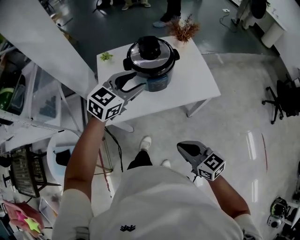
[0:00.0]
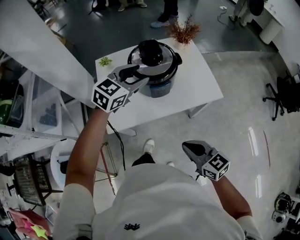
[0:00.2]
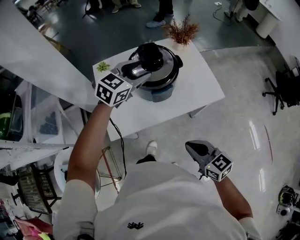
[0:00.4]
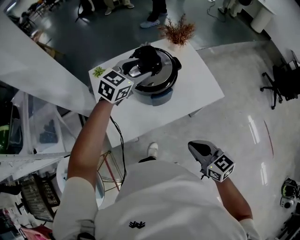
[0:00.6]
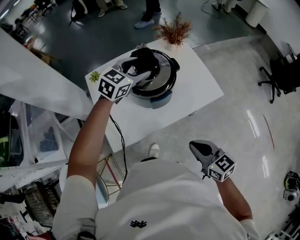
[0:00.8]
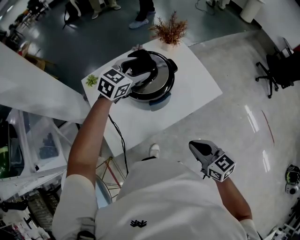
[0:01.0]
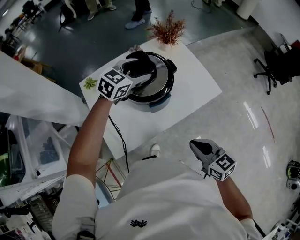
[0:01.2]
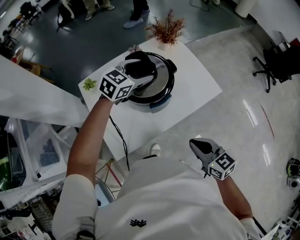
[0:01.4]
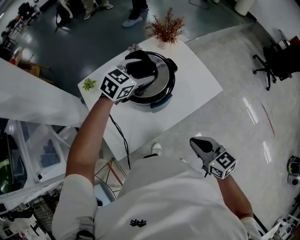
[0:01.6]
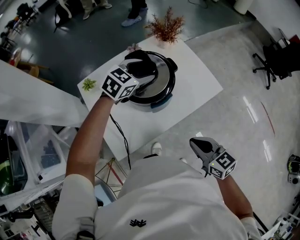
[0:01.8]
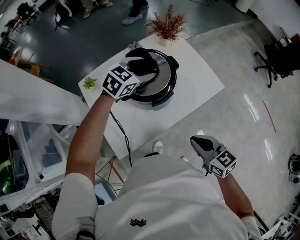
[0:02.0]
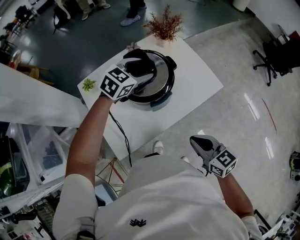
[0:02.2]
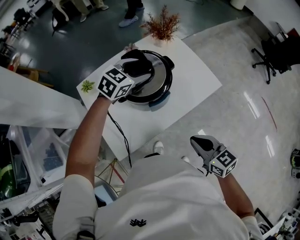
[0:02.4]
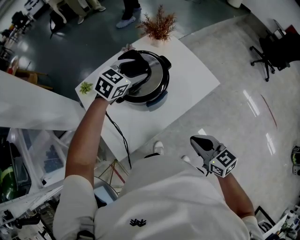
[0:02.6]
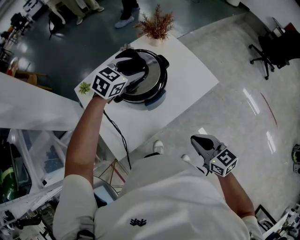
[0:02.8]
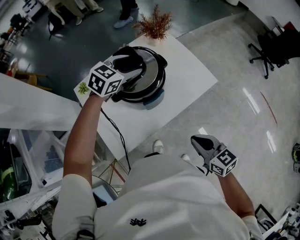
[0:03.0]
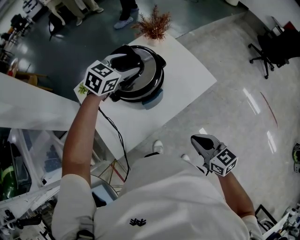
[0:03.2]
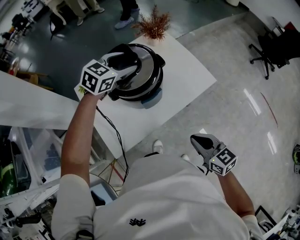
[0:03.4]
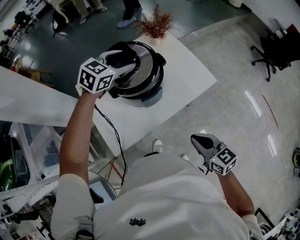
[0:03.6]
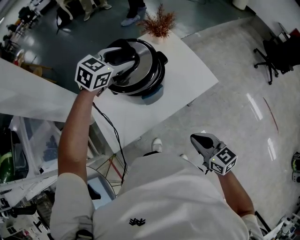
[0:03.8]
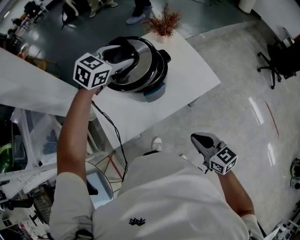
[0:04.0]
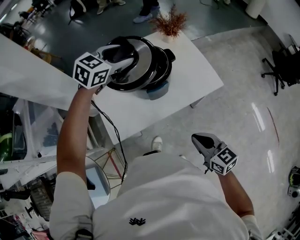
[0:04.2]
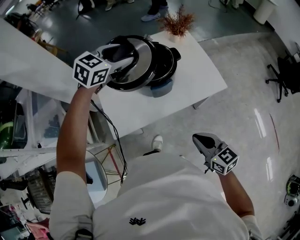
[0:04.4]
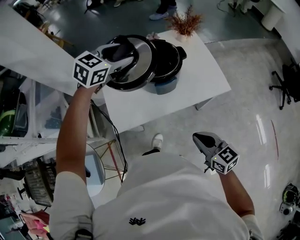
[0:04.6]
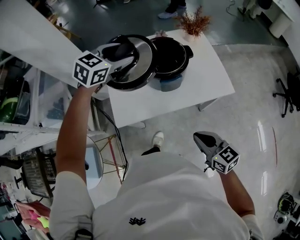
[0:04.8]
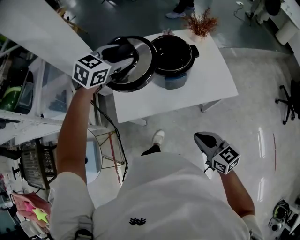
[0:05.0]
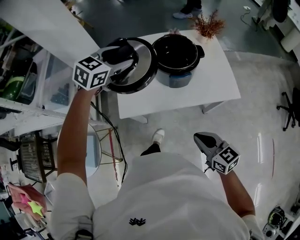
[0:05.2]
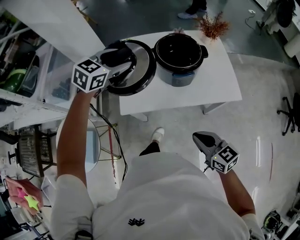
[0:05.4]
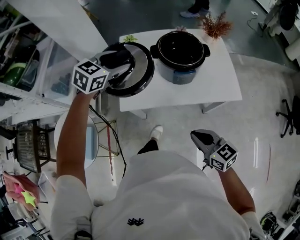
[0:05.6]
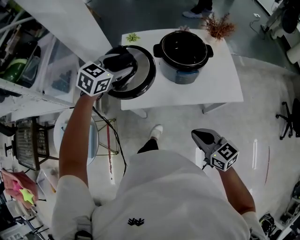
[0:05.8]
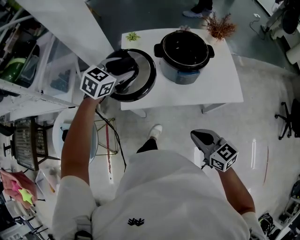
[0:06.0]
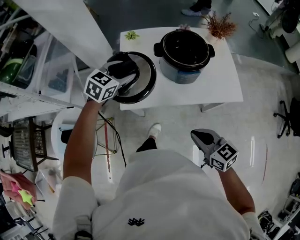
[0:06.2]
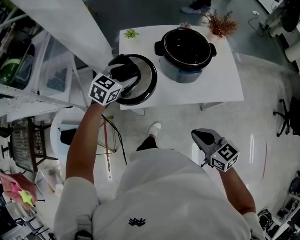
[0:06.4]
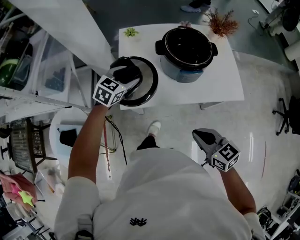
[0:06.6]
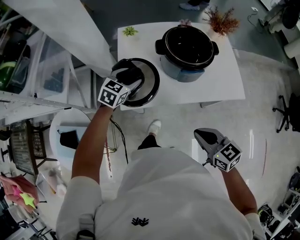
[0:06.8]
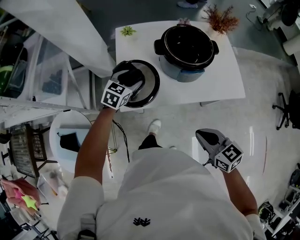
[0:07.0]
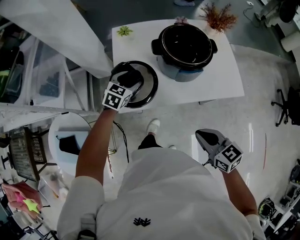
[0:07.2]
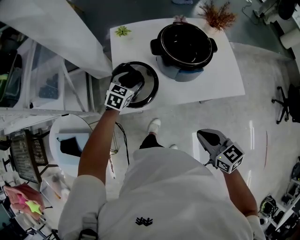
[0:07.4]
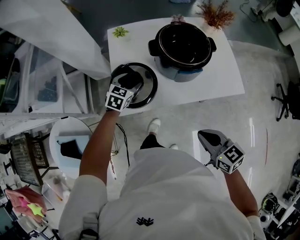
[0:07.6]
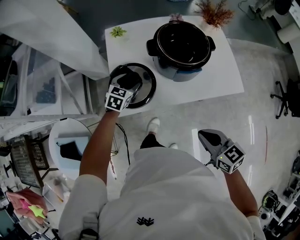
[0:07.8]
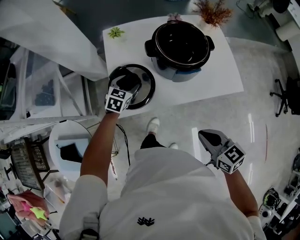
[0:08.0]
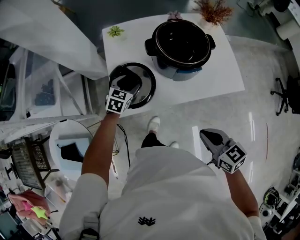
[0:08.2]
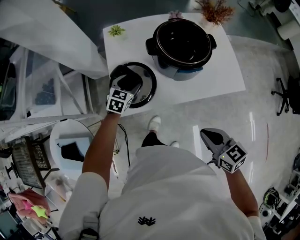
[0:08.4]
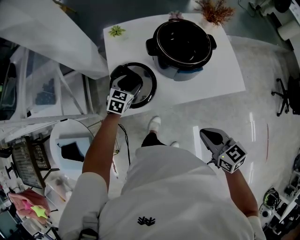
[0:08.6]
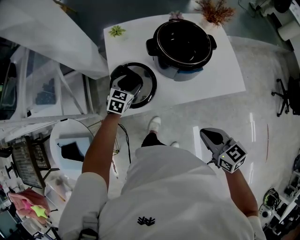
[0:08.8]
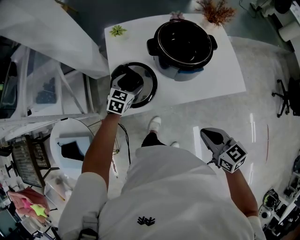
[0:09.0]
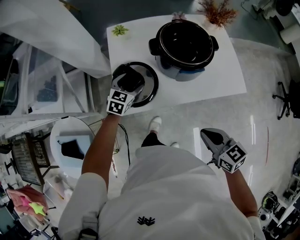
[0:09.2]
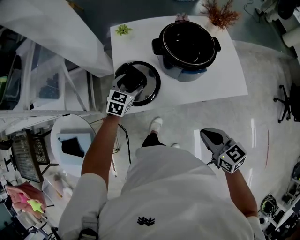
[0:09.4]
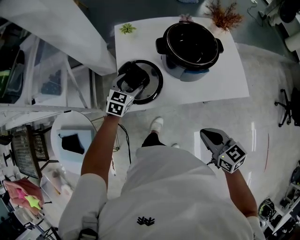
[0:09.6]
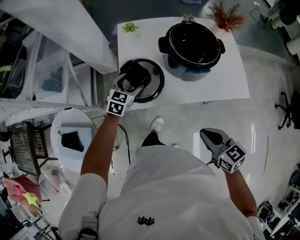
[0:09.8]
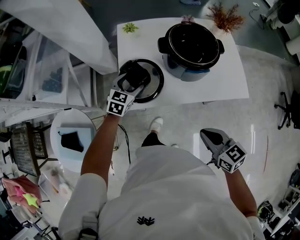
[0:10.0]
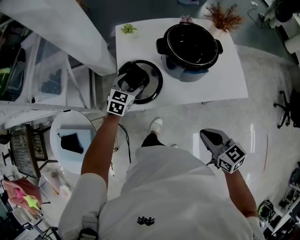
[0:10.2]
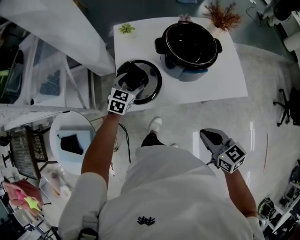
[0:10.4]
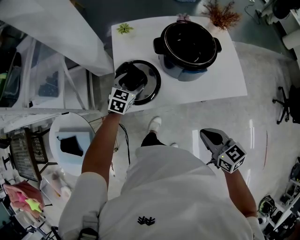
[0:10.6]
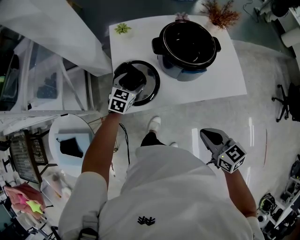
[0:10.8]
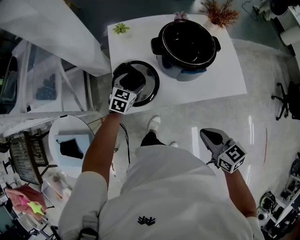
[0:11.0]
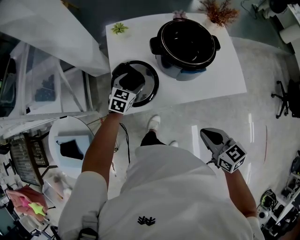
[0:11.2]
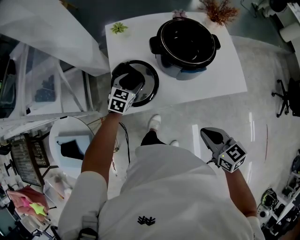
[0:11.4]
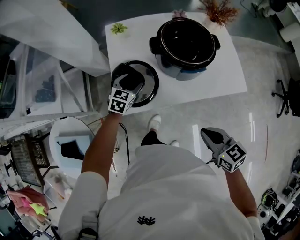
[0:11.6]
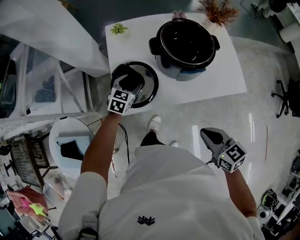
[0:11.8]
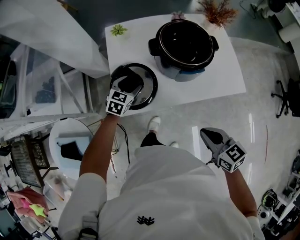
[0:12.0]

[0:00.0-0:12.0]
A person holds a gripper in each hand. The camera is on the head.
0:00.0 to 0:01.6: The right gripper moves forward, approximately 15 cm, and swivels approximately 20 degrees; the left gripper heads forward, covering some 20 cm, and changes its angle by roughly 20 degrees.
0:01.6 to 0:03.0: The grippers make only small movements.
0:03.0 to 0:04.4: The left gripper heads upward, to the left and backward, covering approximately 10 cm.
0:04.4 to 0:06.0: The right gripper moves to the left, about 5 cm, and swivels roughly 20 degrees. The left gripper goes approximately 20 cm to the left, backward and downward, and rotates roughly 20 degrees.
0:06.0 to 0:07.6: The left gripper goes approximately 20 cm downward.
0:07.6 to 0:12.0: There are only small adjustments of the grippers.

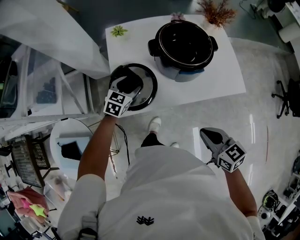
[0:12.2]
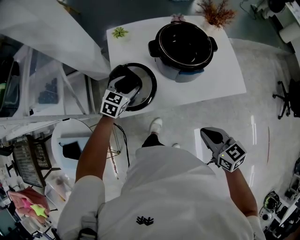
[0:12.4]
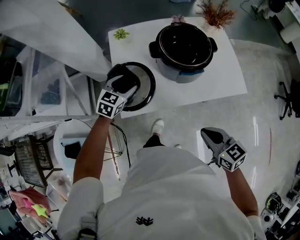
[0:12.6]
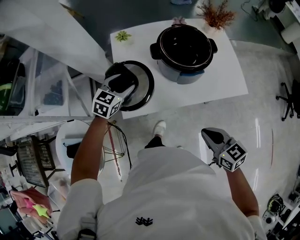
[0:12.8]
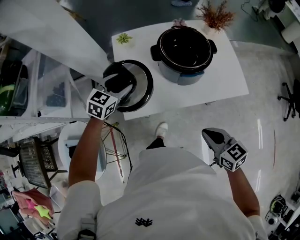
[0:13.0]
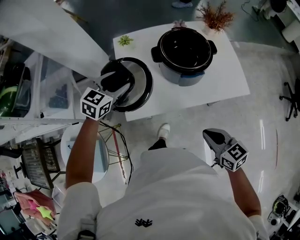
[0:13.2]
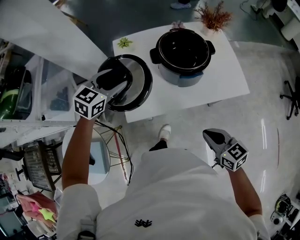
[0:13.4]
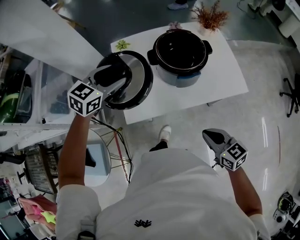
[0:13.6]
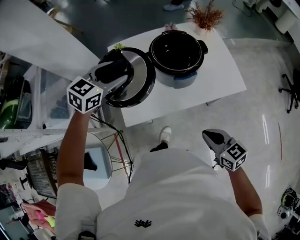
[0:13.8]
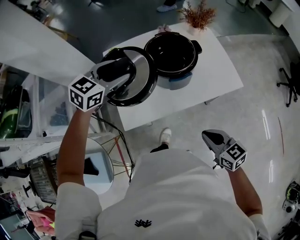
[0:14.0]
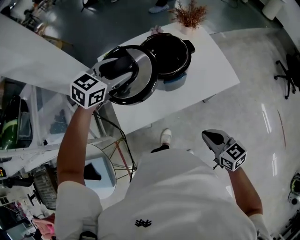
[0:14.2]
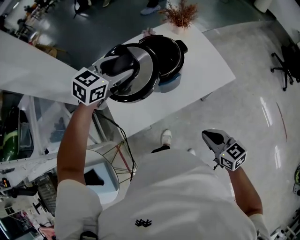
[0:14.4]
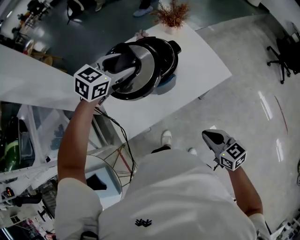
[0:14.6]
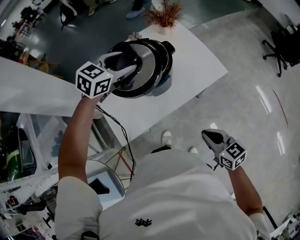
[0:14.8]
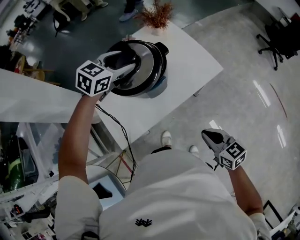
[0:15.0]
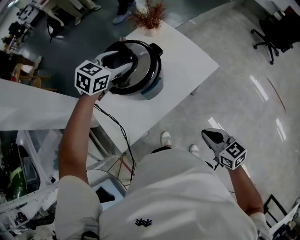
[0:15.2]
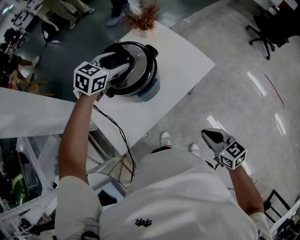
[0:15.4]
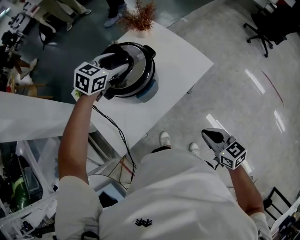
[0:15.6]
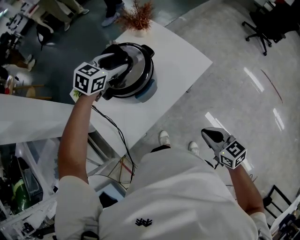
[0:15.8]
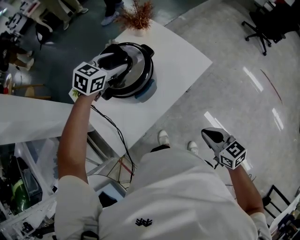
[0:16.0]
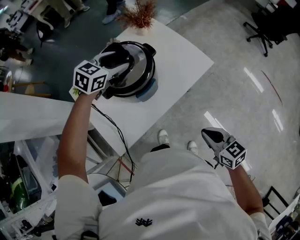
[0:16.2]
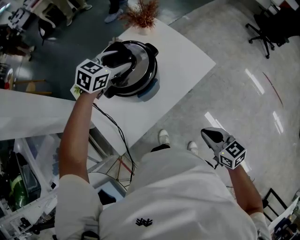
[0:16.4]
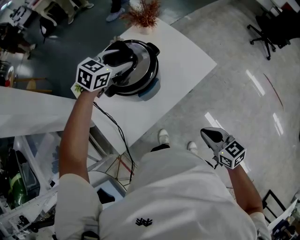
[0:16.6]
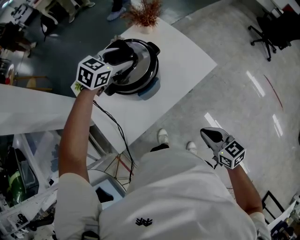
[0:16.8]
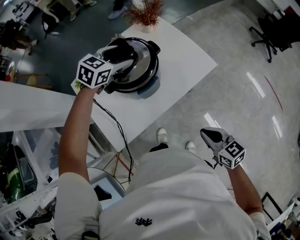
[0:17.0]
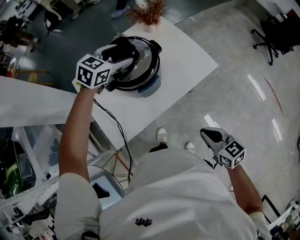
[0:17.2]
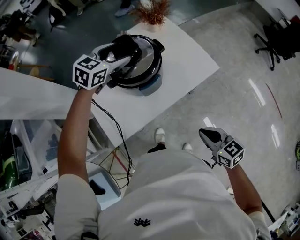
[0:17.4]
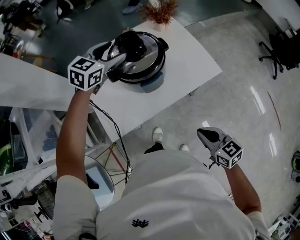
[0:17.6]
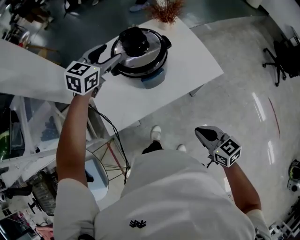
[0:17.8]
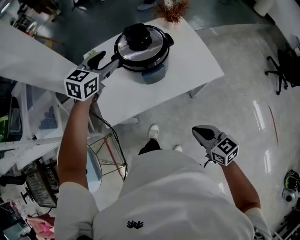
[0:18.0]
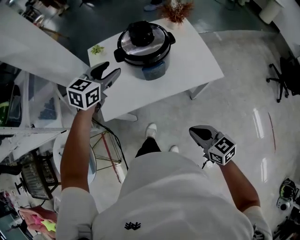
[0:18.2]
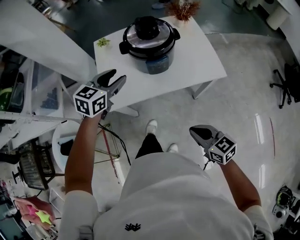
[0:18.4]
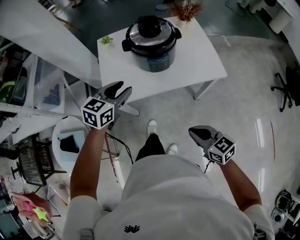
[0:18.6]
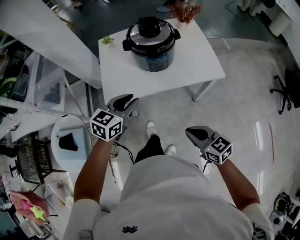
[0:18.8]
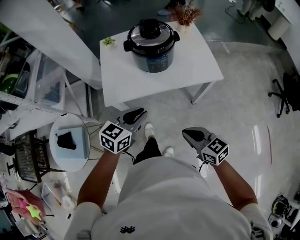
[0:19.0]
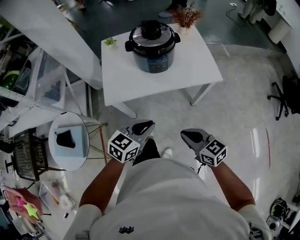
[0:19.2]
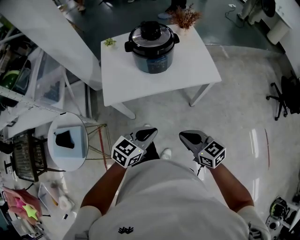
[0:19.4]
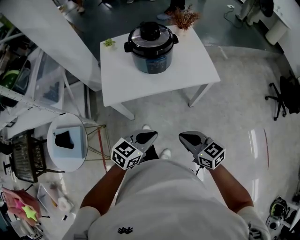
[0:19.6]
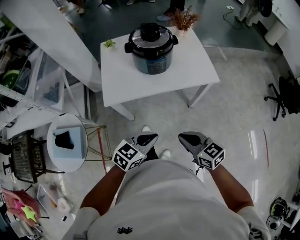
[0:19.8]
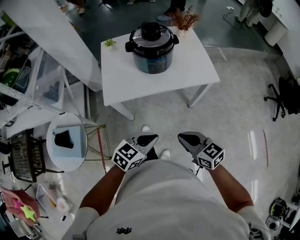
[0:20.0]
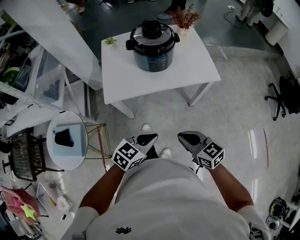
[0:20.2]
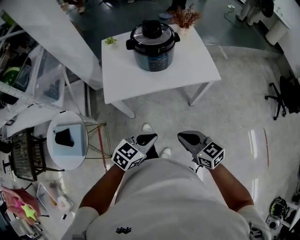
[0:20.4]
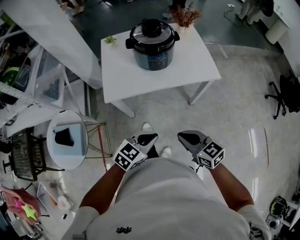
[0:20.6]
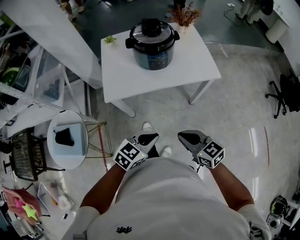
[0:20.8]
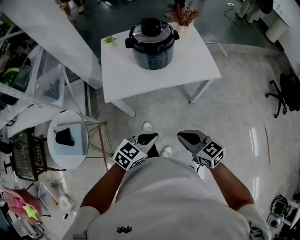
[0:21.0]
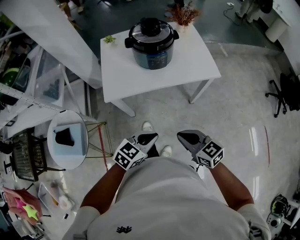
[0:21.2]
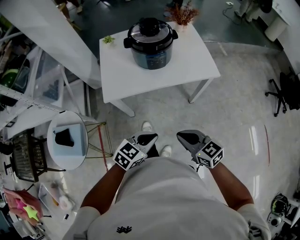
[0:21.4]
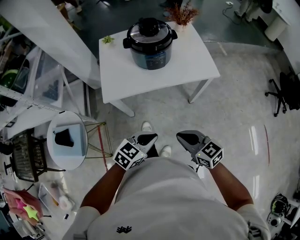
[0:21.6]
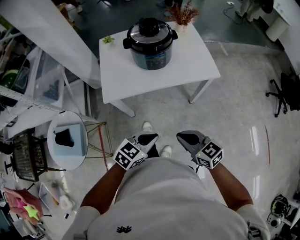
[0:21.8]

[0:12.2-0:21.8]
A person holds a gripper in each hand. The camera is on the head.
0:12.2 to 0:13.8: The left gripper travels upward by roughly 25 cm.
0:13.8 to 0:15.4: The left gripper is displaced to the right and forward by approximately 25 cm, and changes its angle by approximately 20 degrees, while the right gripper is displaced to the right by approximately 5 cm, and rotates approximately 30 degrees.
0:15.4 to 0:17.0: There are only small adjustments of the grippers.
0:17.0 to 0:18.6: The right gripper shifts by about 10 cm, and turns by about 30 degrees; the left gripper changes place by some 30 cm, turns by approximately 40 degrees, and closes its fingers.
0:18.6 to 0:20.2: The left gripper moves backward and to the right, roughly 25 cm, and closes its fingers. The right gripper goes approximately 5 cm backward.
0:20.2 to 0:21.8: The grippers stay close to where they were, moving slightly.

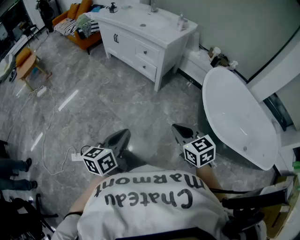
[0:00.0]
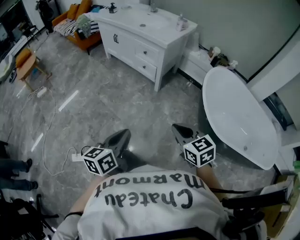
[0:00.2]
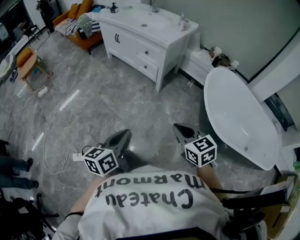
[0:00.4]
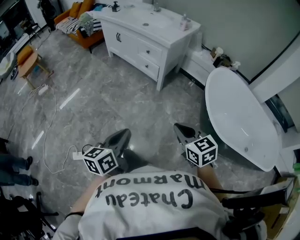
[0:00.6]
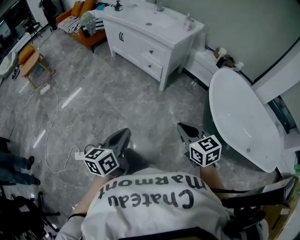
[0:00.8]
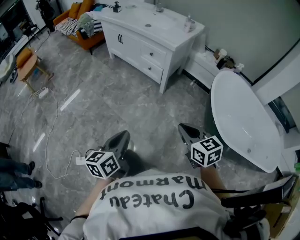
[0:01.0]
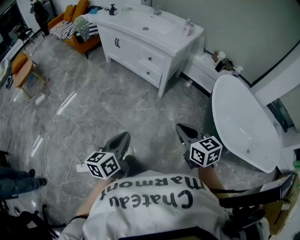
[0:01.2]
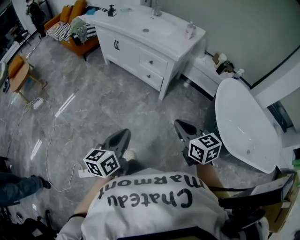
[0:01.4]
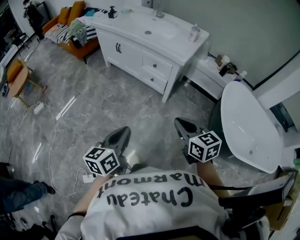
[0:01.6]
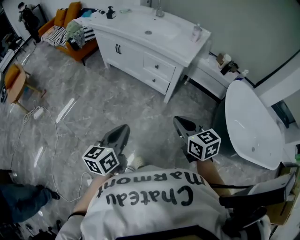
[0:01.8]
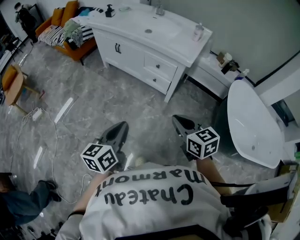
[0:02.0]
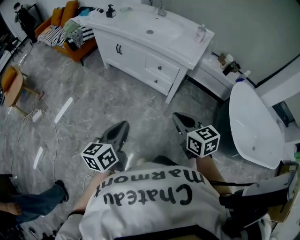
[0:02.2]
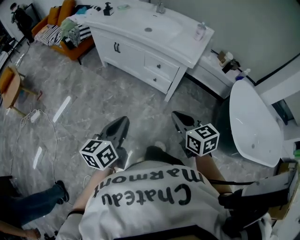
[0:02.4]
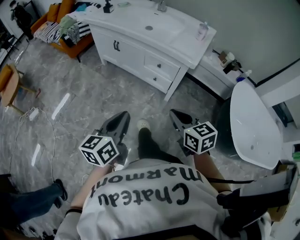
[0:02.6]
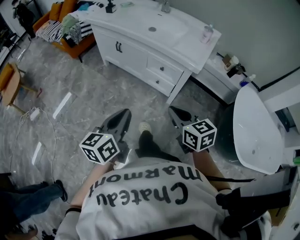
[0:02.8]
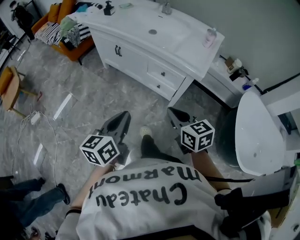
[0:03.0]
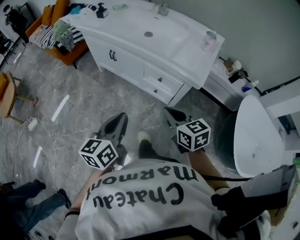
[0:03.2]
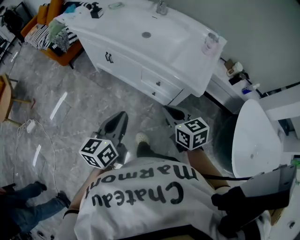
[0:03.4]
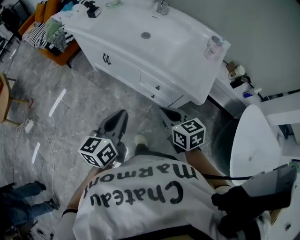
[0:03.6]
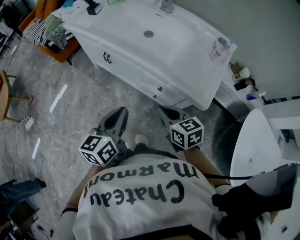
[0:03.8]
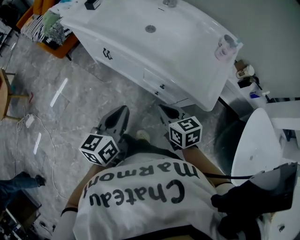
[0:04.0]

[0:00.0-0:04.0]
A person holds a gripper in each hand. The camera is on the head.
0:00.0 to 0:01.4: Both grippers travel together forward and to the left, some 20 cm.
0:01.4 to 0:02.6: Both grippers move forward and to the left, some 20 cm.
0:02.6 to 0:04.0: Both grippers move forward, approximately 30 cm.
